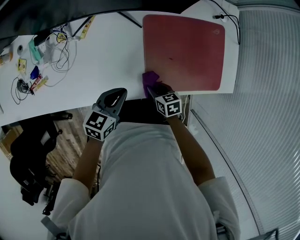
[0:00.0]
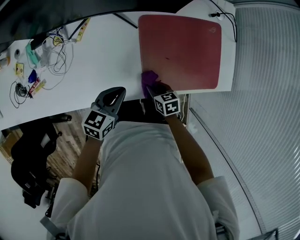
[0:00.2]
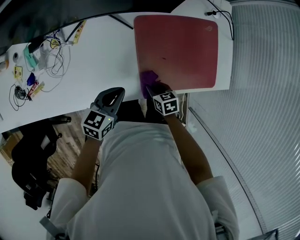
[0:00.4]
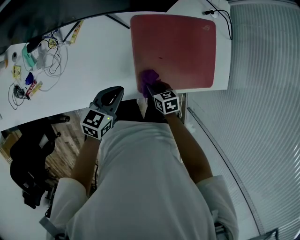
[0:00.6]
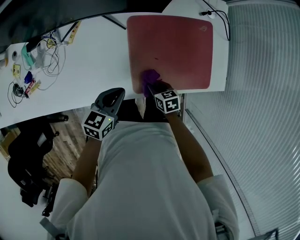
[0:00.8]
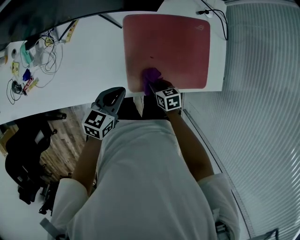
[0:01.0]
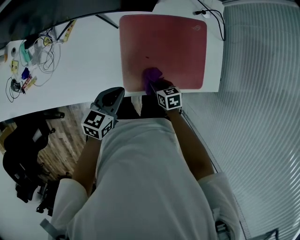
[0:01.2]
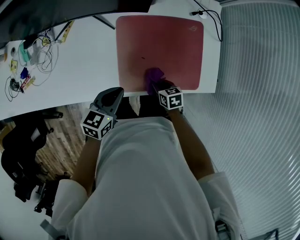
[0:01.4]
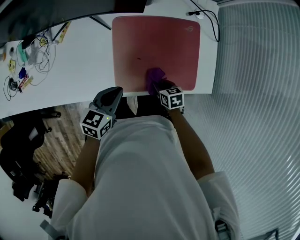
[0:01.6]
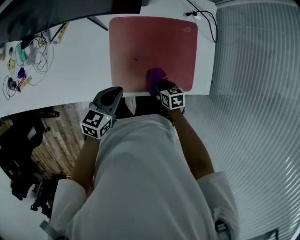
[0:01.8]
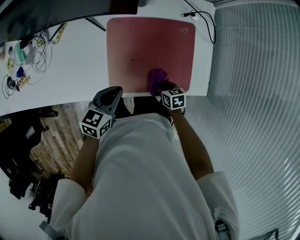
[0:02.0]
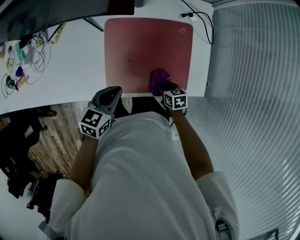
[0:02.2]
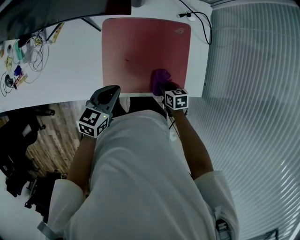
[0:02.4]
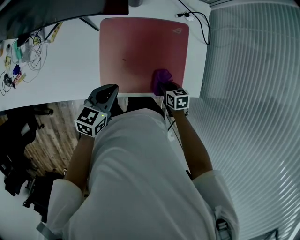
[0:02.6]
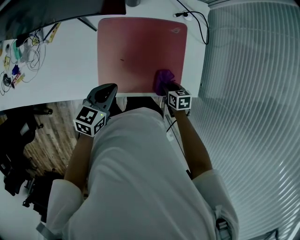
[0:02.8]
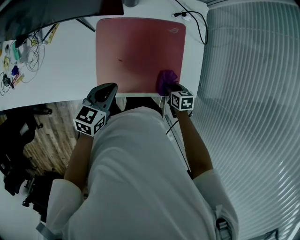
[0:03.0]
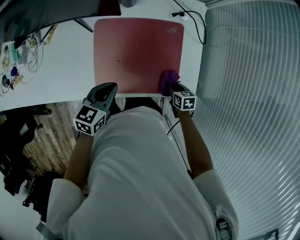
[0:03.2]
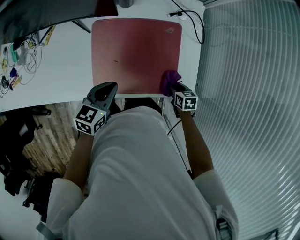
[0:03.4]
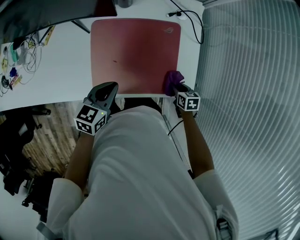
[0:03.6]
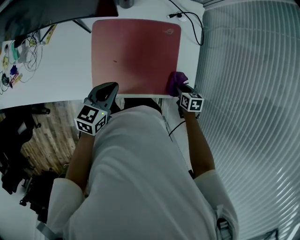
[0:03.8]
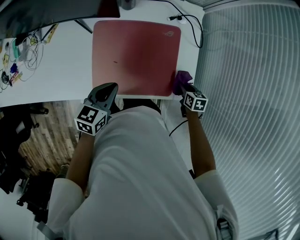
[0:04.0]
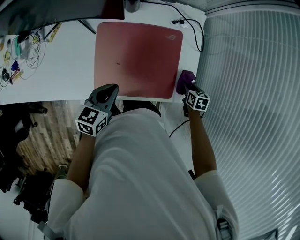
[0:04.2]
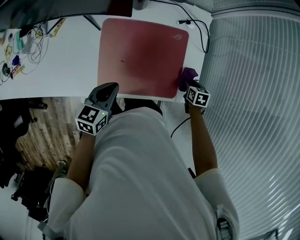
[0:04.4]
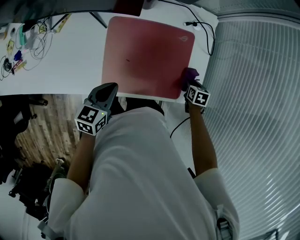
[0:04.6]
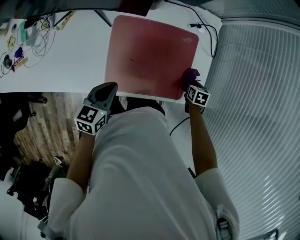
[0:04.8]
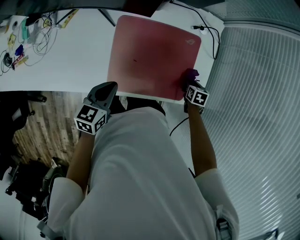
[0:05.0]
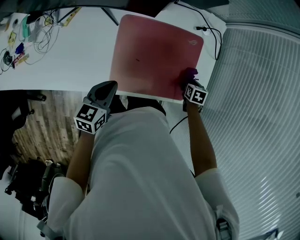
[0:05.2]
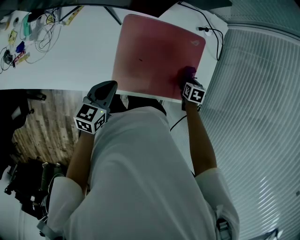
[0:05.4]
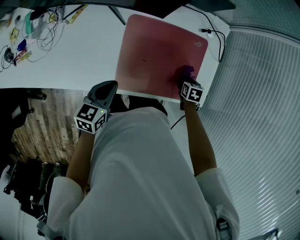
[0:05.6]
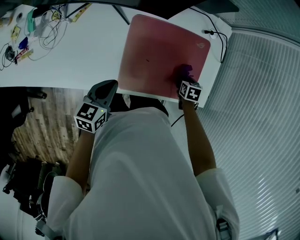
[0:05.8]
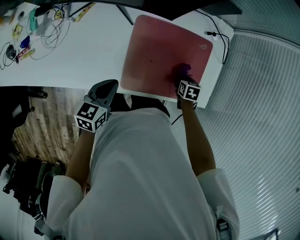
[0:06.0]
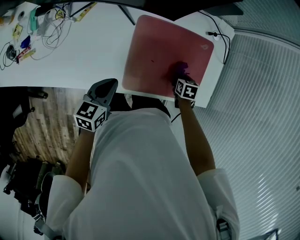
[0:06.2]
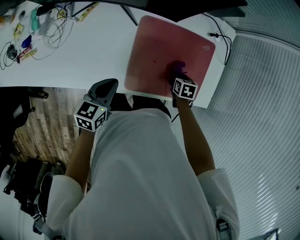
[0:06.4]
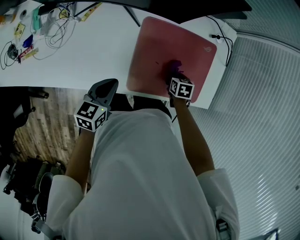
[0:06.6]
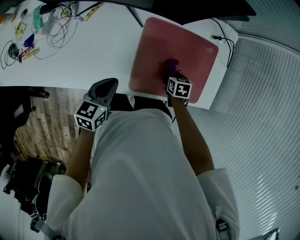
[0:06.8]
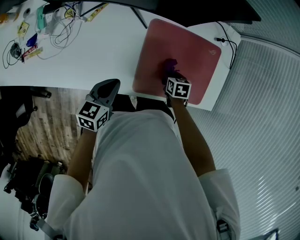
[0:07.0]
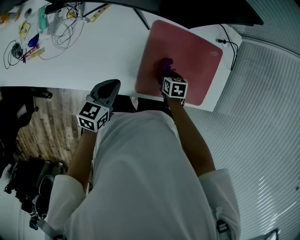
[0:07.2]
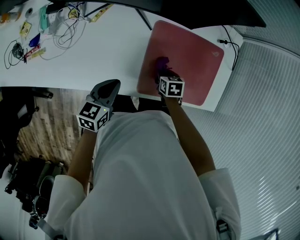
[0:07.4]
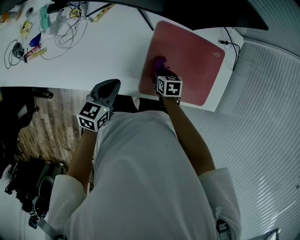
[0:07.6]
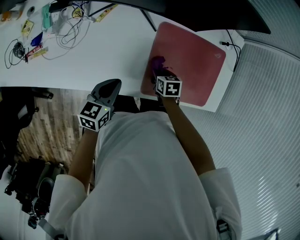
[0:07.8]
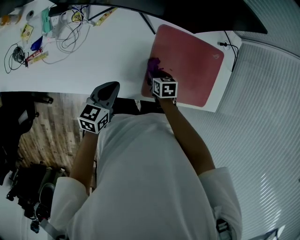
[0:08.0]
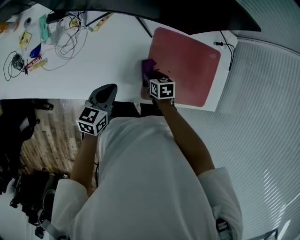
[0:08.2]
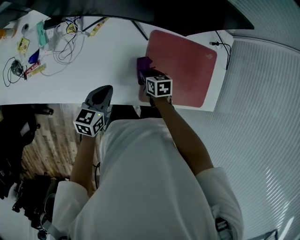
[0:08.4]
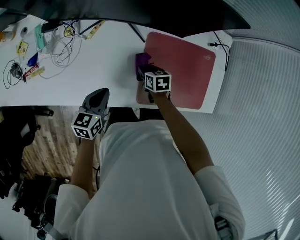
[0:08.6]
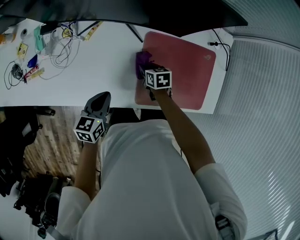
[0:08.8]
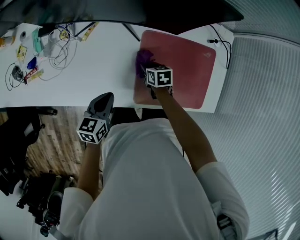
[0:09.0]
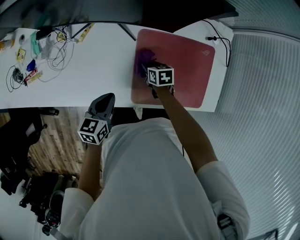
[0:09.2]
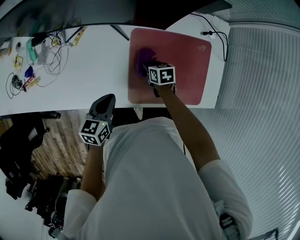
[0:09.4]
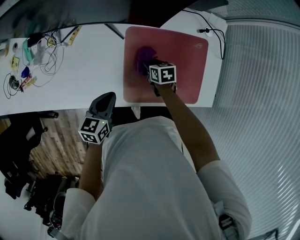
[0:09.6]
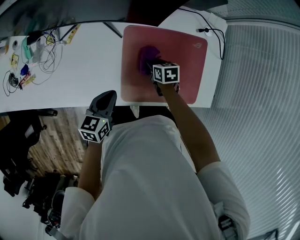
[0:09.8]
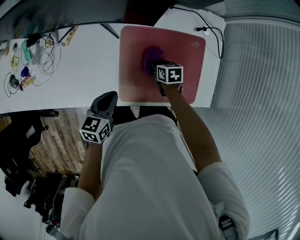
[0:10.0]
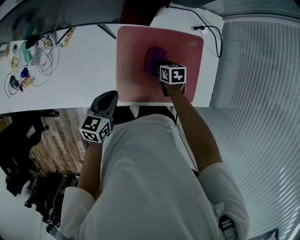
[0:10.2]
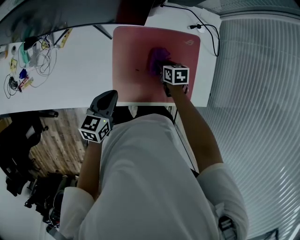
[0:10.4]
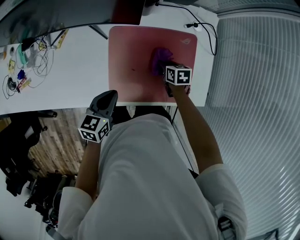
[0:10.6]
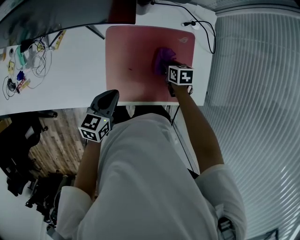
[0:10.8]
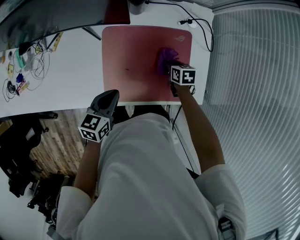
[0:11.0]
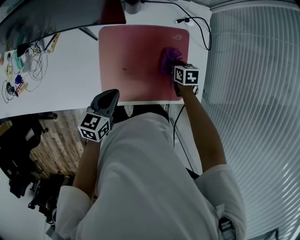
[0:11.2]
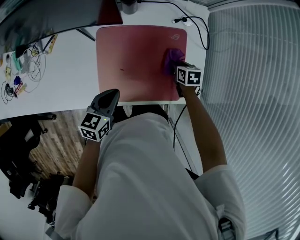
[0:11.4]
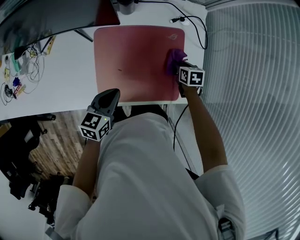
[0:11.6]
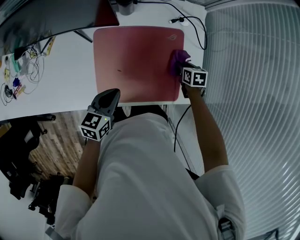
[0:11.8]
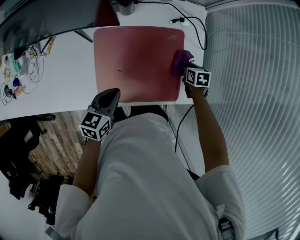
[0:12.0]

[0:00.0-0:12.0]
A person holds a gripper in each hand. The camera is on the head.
0:00.0 to 0:01.6: Both grippers travel together to the right, roughly 15 cm.
0:01.6 to 0:03.0: The left gripper goes about 10 cm to the right; the right gripper heads to the right, covering approximately 15 cm.
0:03.0 to 0:04.4: The right gripper is displaced to the right and forward by some 15 cm.
0:04.4 to 0:06.0: The left gripper shifts by some 15 cm. Meanwhile the right gripper shifts by approximately 20 cm.
0:06.0 to 0:07.6: The left gripper changes place by some 10 cm. Meanwhile the right gripper ends up approximately 25 cm from where it was.
0:07.6 to 0:09.0: The right gripper moves forward, approximately 10 cm.
0:09.0 to 0:10.4: The two grippers go about 15 cm to the right.
0:10.4 to 0:12.0: The left gripper moves to the right, roughly 10 cm. Meanwhile the right gripper shifts approximately 20 cm to the right.

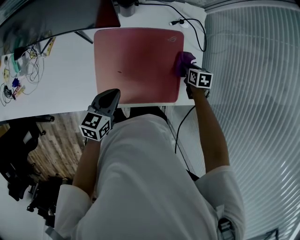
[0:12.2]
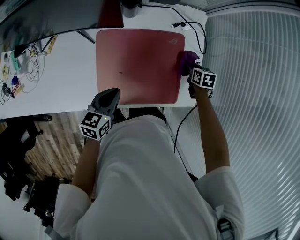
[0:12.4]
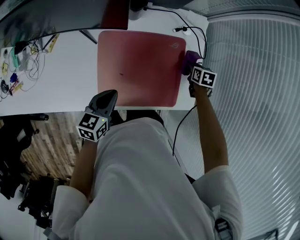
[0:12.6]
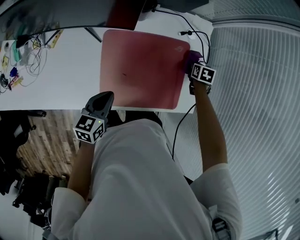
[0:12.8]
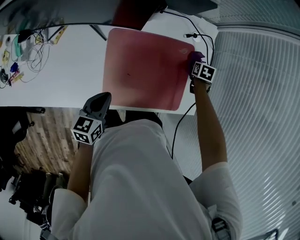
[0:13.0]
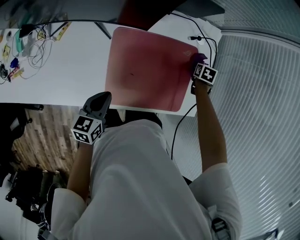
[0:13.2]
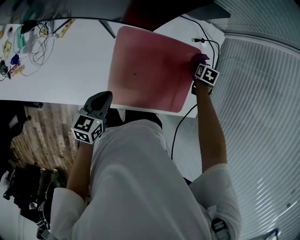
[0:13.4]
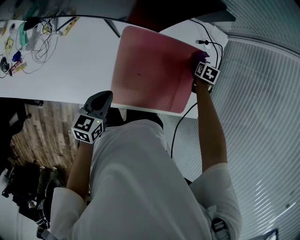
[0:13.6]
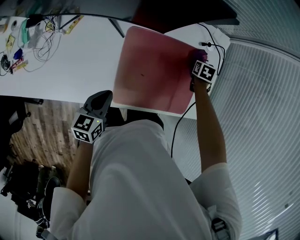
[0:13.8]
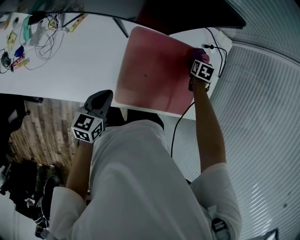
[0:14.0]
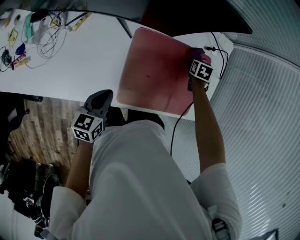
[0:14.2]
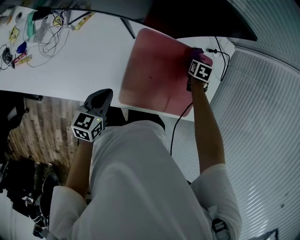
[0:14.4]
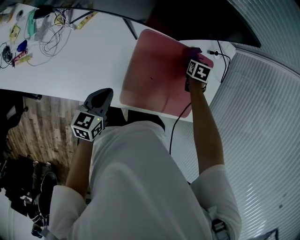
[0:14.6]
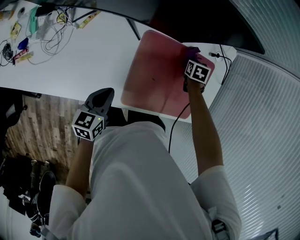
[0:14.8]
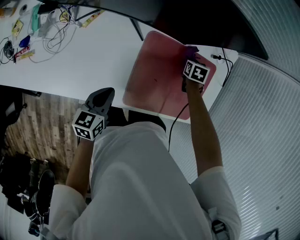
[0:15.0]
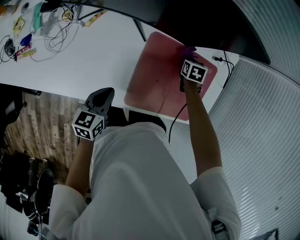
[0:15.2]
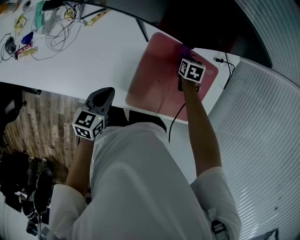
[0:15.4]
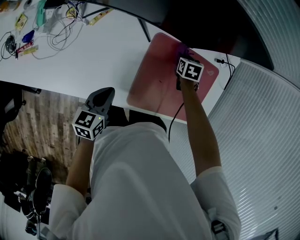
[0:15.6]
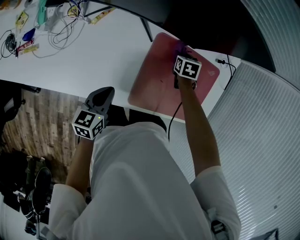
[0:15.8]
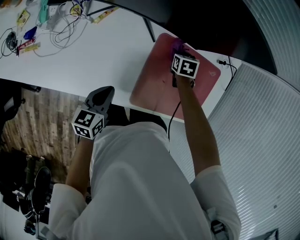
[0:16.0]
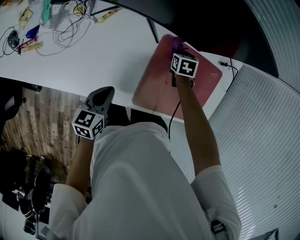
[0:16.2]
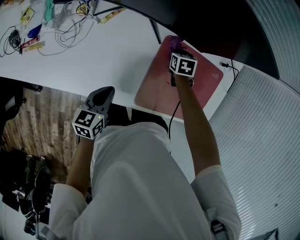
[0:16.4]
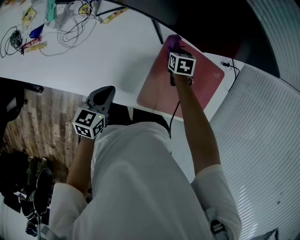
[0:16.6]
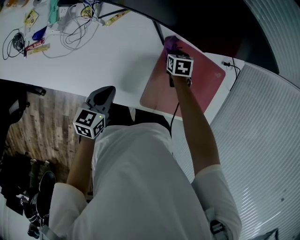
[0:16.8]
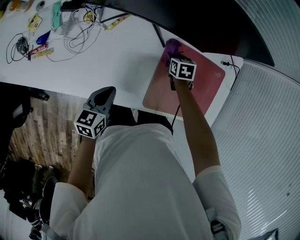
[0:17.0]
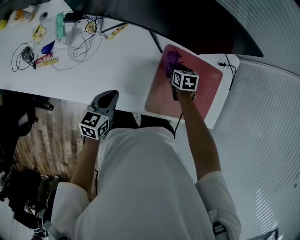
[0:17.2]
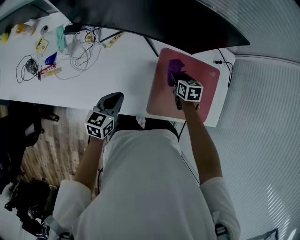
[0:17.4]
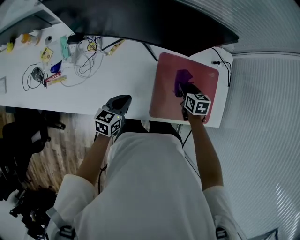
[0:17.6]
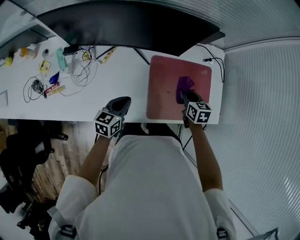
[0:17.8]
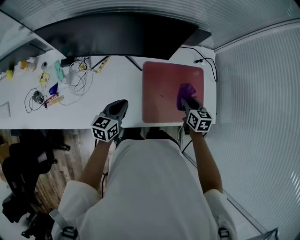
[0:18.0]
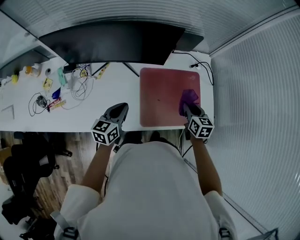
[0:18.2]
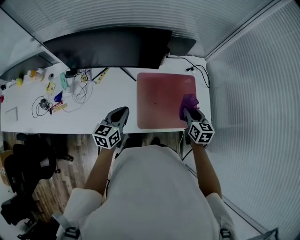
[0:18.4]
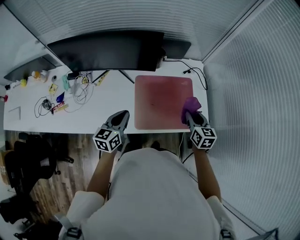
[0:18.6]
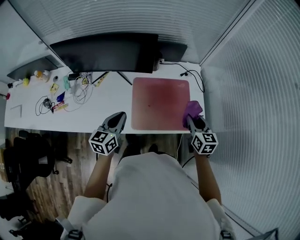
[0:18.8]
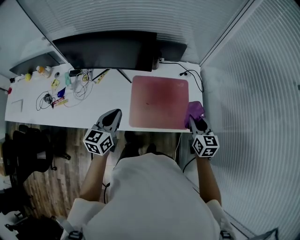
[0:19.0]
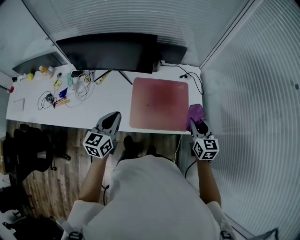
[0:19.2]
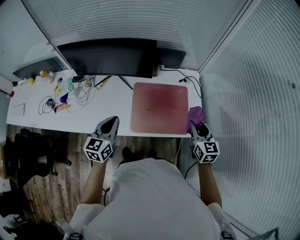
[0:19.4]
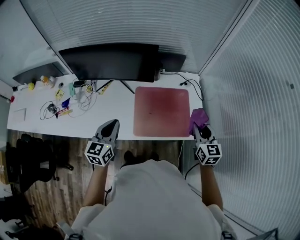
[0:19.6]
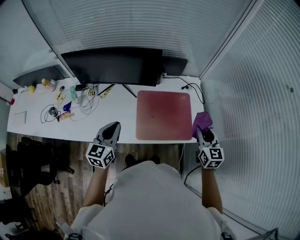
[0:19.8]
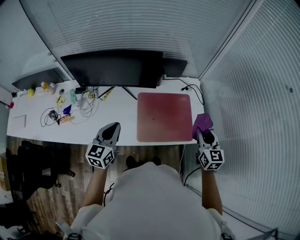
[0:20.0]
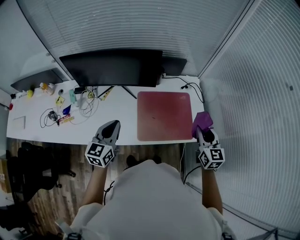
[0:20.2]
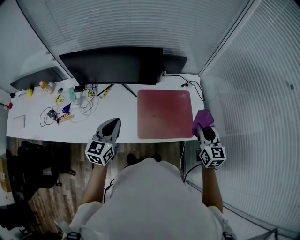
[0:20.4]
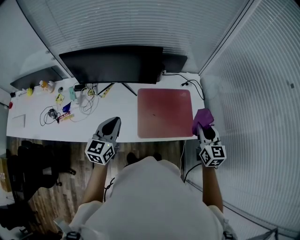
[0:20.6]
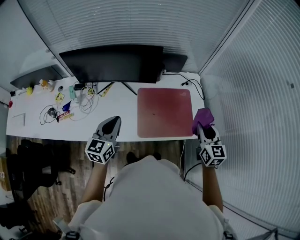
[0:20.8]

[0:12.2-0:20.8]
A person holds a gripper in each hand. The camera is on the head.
0:12.2 to 0:13.6: The left gripper ends up roughly 15 cm from where it was. Meanwhile the right gripper changes place by approximately 10 cm.
0:13.6 to 0:15.0: The right gripper is displaced to the left by approximately 15 cm, while the left gripper shifts roughly 10 cm to the left.
0:15.0 to 0:16.6: The left gripper travels to the left by roughly 5 cm. The right gripper is displaced to the left by some 20 cm.
0:16.6 to 0:18.0: The left gripper shifts about 10 cm upward and to the right, and swivels some 20 degrees. The right gripper is displaced upward, backward and to the right by roughly 30 cm, and rotates roughly 30 degrees.
0:18.0 to 0:19.4: The right gripper goes about 25 cm to the right, upward and backward, and swivels about 20 degrees. Meanwhile the left gripper goes roughly 20 cm upward, backward and to the right, and turns by some 20 degrees.
0:19.4 to 0:20.8: The left gripper shifts by approximately 5 cm.

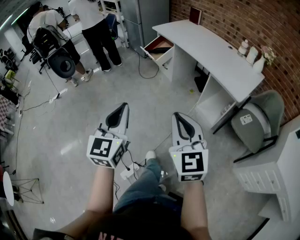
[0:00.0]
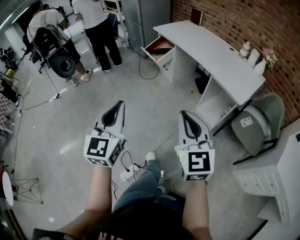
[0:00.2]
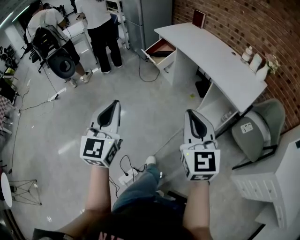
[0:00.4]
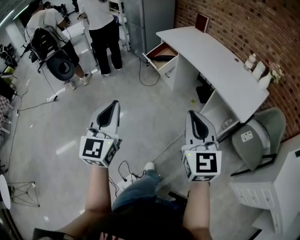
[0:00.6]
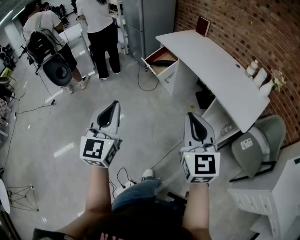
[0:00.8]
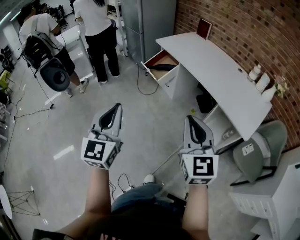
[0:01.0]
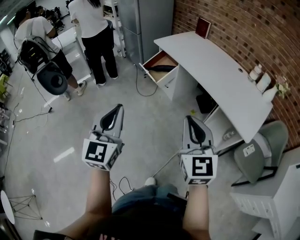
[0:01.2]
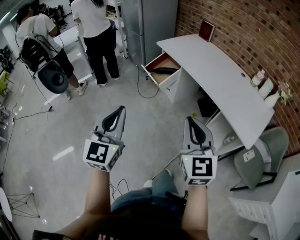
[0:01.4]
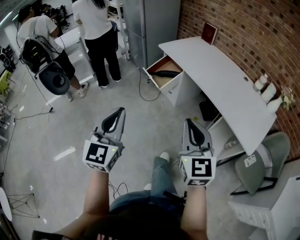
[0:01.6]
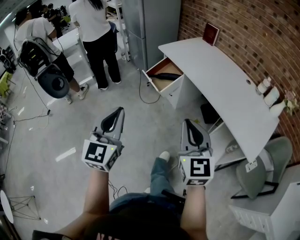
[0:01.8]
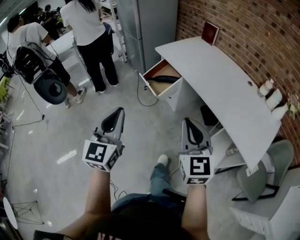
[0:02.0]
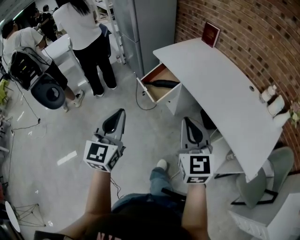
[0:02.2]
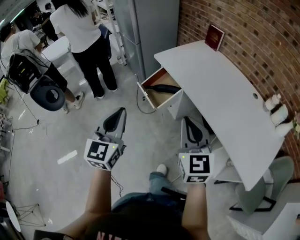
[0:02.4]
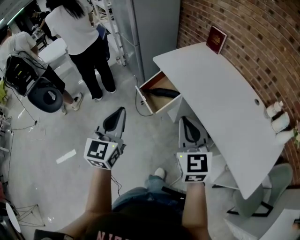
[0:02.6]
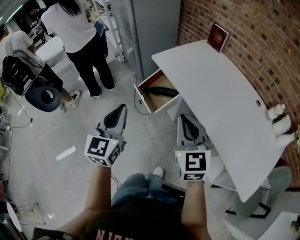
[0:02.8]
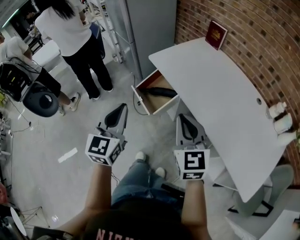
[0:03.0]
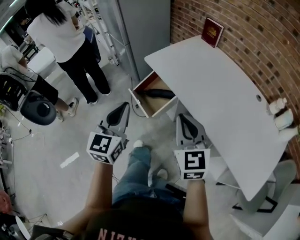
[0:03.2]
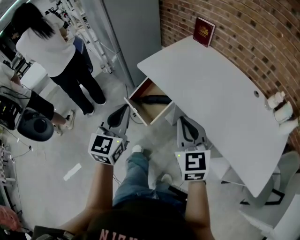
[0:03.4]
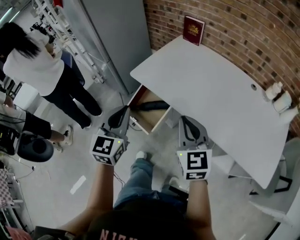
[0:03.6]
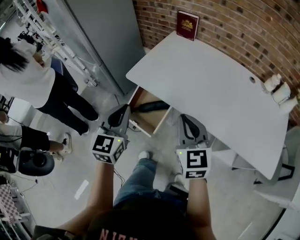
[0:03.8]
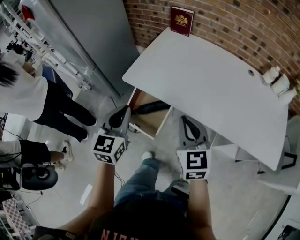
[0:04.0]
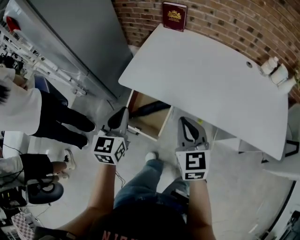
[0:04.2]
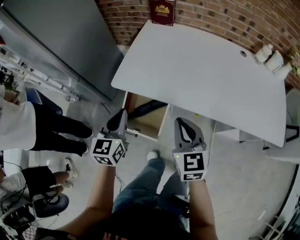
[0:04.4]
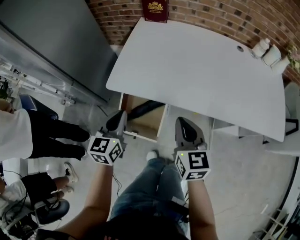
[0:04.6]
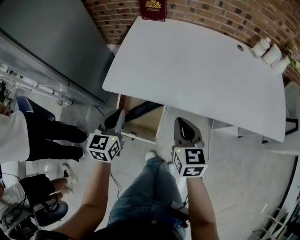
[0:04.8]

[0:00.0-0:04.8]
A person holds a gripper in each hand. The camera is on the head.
0:00.0 to 0:01.6: Both grippers move forward, about 30 cm.
0:01.6 to 0:03.2: The pair of grippers is taken forward, about 40 cm.
0:03.2 to 0:04.8: The right gripper changes place by approximately 25 cm, and rotates roughly 50 degrees. Meanwhile the left gripper moves approximately 35 cm, and swivels roughly 40 degrees.
